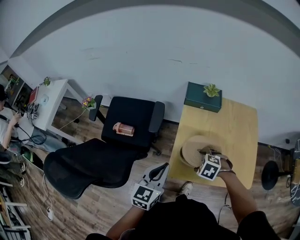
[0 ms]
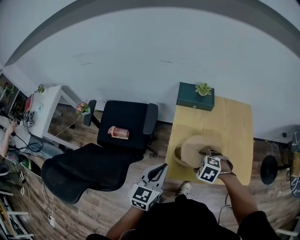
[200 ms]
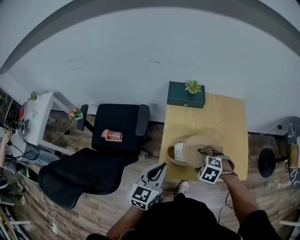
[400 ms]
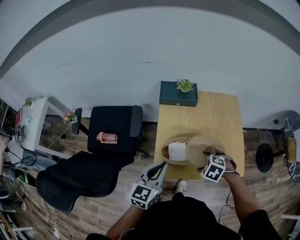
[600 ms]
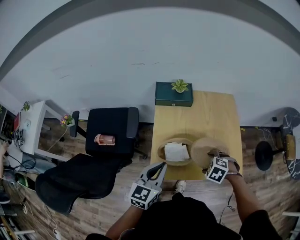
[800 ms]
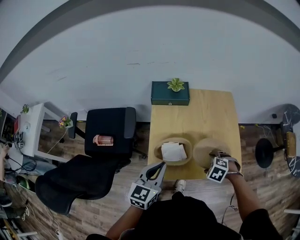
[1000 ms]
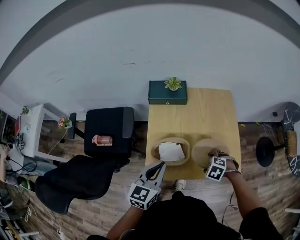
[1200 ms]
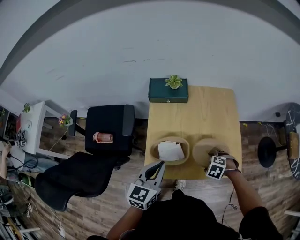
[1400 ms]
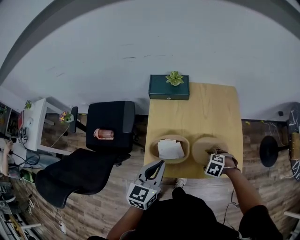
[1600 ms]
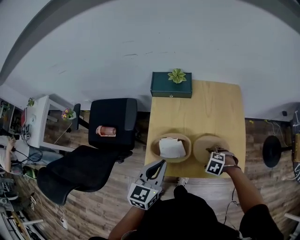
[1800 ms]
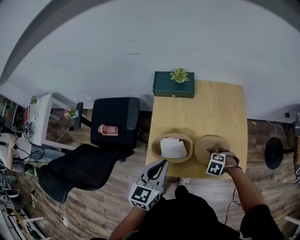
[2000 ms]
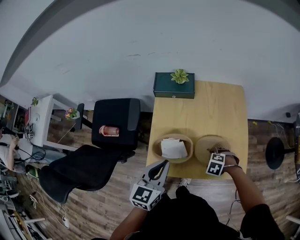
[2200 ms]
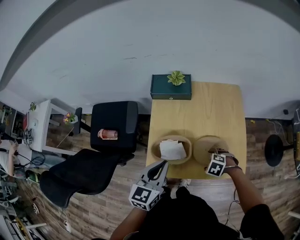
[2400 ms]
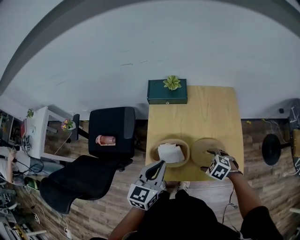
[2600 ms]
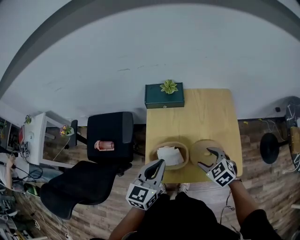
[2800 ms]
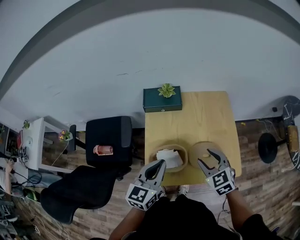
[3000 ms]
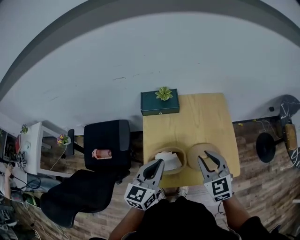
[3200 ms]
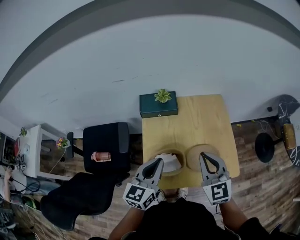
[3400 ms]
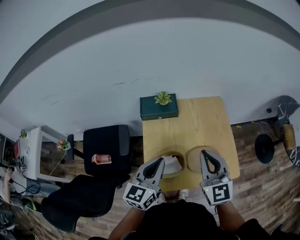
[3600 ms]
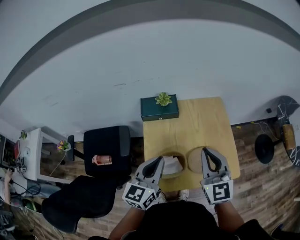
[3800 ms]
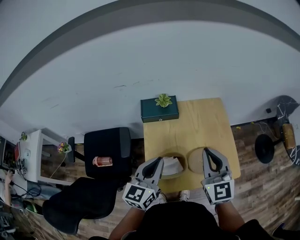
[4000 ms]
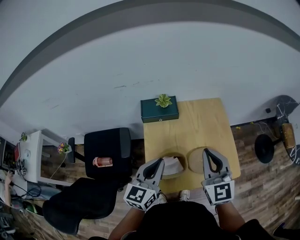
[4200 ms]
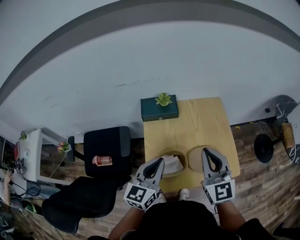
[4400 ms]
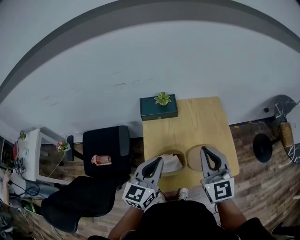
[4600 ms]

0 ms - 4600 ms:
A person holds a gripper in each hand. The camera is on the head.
0 ms - 1600 ms: The right gripper shifts by roughly 25 cm, while the left gripper shifts by approximately 15 cm.
1600 ms - 3000 ms: The left gripper moves some 5 cm, while the right gripper heads upward, covering approximately 20 cm, and tilts its fingers roughly 50 degrees upward.
3000 ms - 4600 ms: The left gripper ends up about 5 cm from where it was; the right gripper travels upward by approximately 15 cm, angles its fingers upward, by some 40 degrees, and closes up.

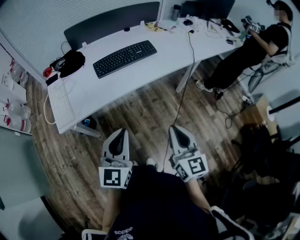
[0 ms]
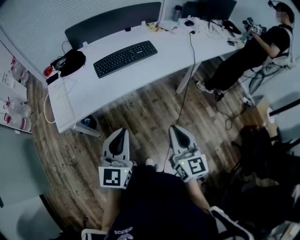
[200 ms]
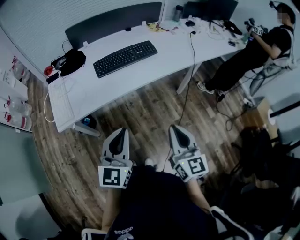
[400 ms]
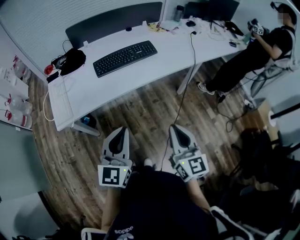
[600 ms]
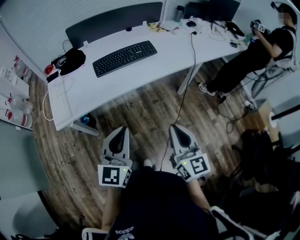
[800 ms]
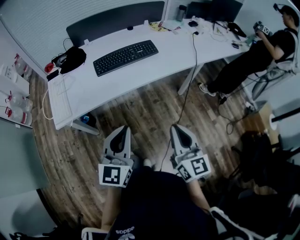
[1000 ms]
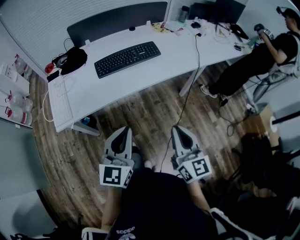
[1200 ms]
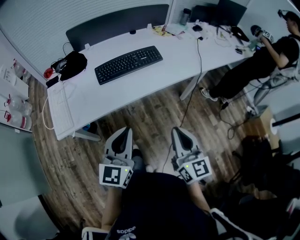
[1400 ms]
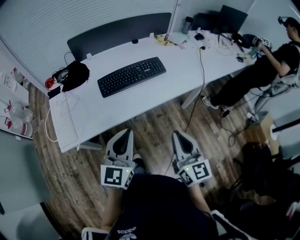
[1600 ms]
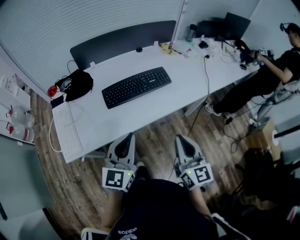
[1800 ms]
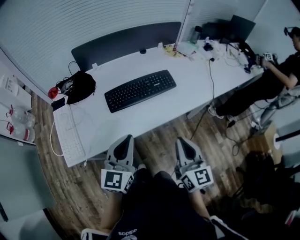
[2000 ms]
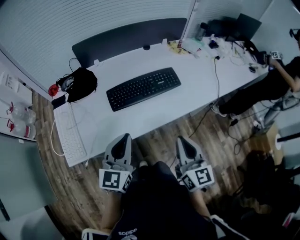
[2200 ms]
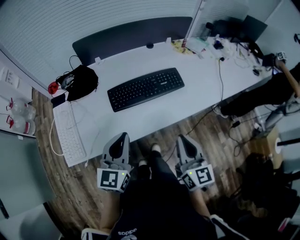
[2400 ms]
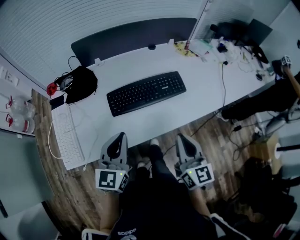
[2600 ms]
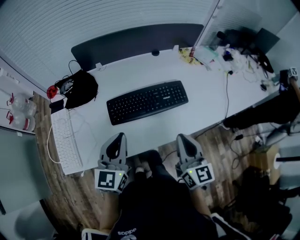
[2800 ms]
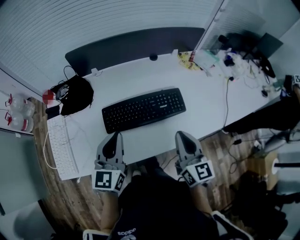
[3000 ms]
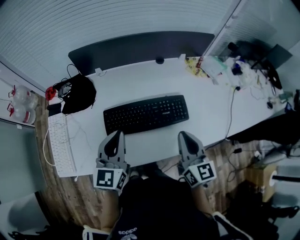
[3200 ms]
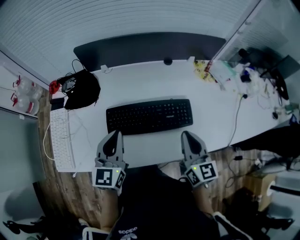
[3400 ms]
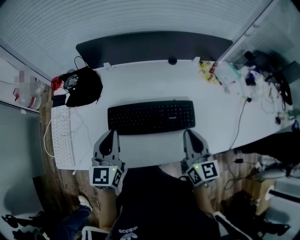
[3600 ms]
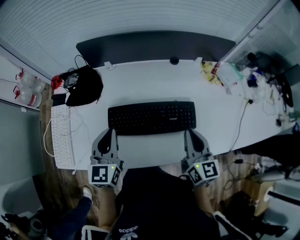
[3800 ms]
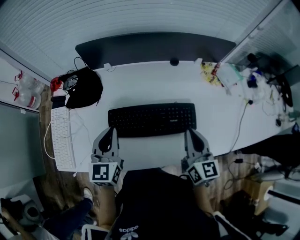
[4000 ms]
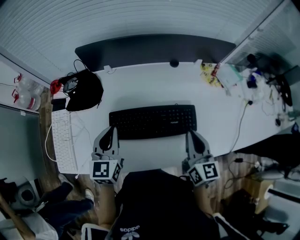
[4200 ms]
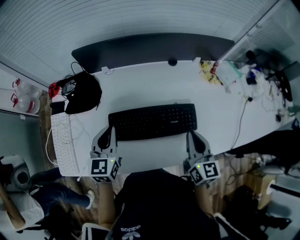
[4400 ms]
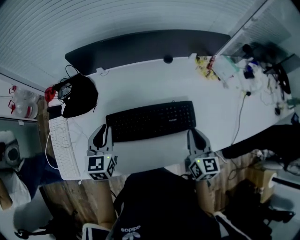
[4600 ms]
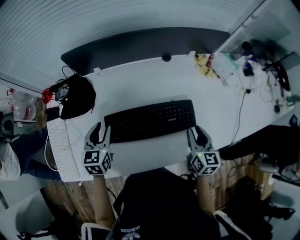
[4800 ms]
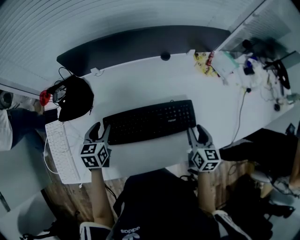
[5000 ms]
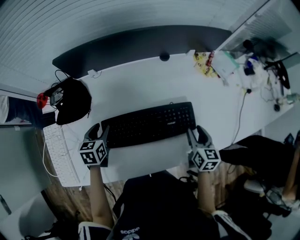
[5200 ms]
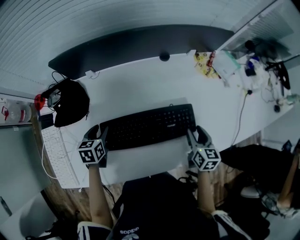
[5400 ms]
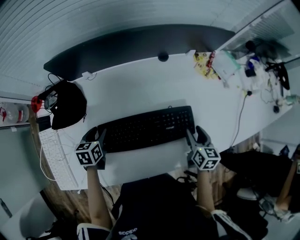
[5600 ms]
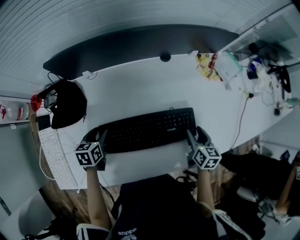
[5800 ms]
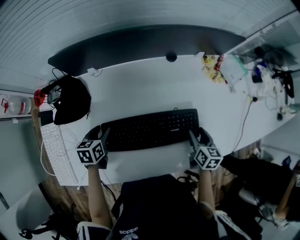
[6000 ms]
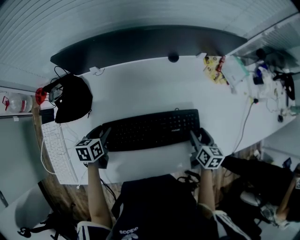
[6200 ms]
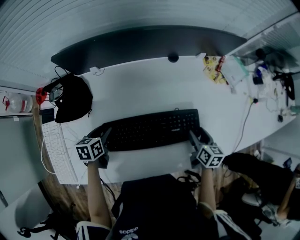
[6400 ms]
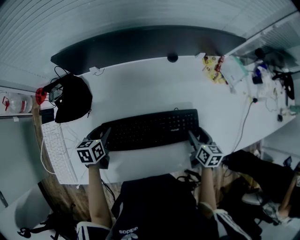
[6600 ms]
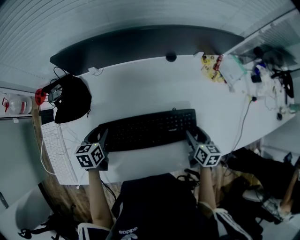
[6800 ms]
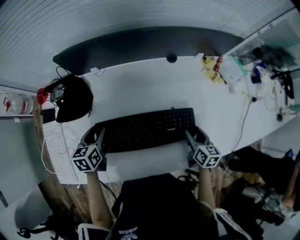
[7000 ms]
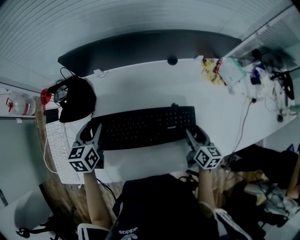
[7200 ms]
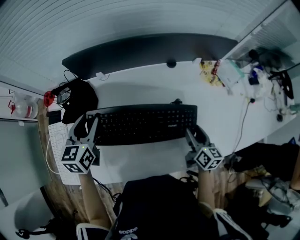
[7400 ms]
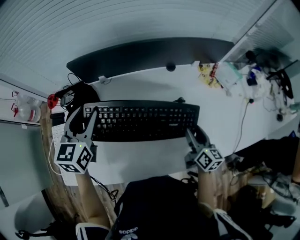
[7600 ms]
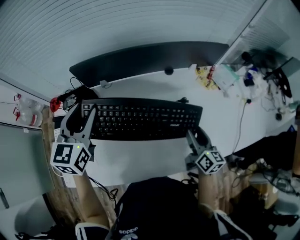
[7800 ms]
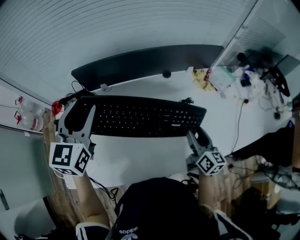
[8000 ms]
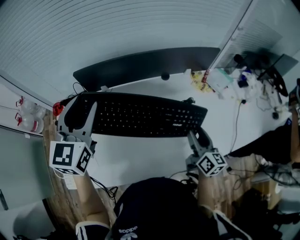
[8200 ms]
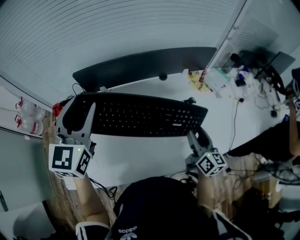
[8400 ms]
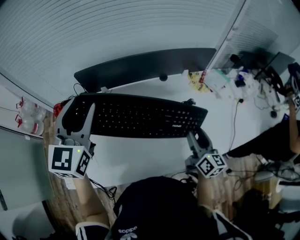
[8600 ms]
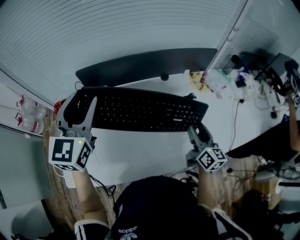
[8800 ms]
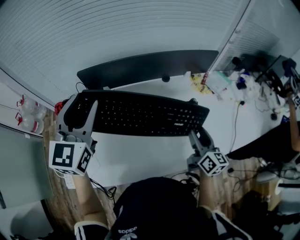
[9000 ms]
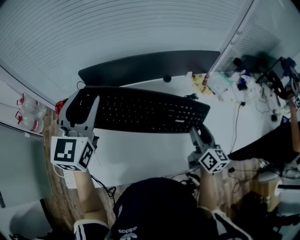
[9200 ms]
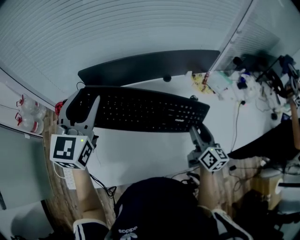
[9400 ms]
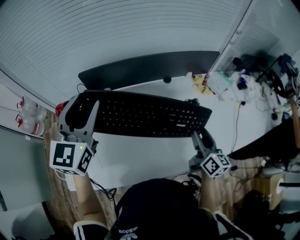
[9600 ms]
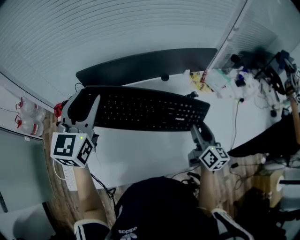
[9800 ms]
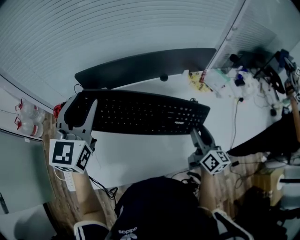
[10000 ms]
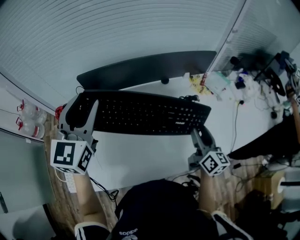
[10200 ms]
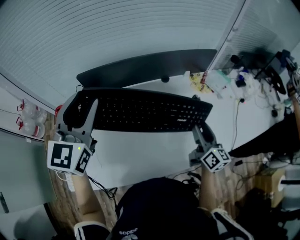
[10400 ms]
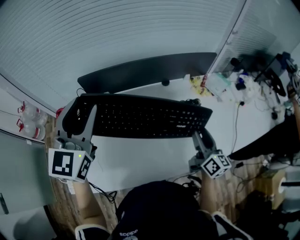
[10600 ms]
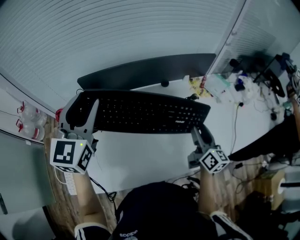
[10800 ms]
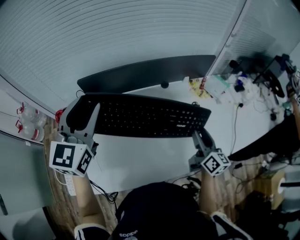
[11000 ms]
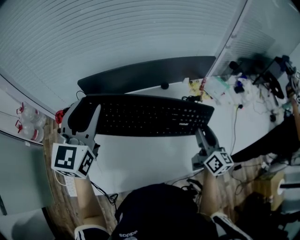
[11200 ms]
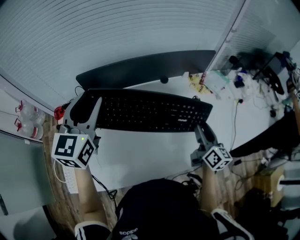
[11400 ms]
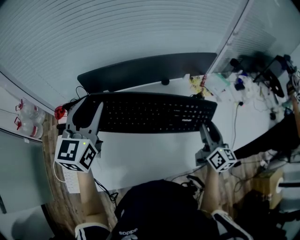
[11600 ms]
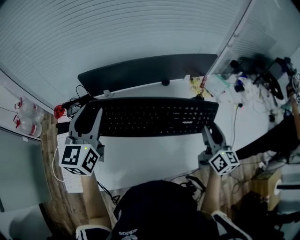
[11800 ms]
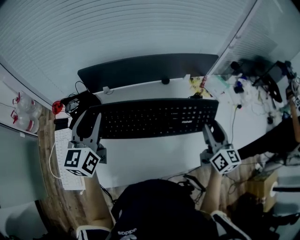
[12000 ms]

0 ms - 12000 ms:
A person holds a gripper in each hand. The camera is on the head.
0 ms - 1600 ms: Both grippers move forward, approximately 15 cm.
1600 ms - 3000 ms: Both grippers travel together forward, approximately 30 cm.
3000 ms - 4400 ms: The right gripper moves forward, roughly 10 cm; the left gripper goes some 10 cm forward and downward.
4400 ms - 6000 ms: The right gripper shifts about 20 cm downward and to the right, turns by roughly 30 degrees, and opens its fingers. Meanwhile the left gripper goes about 15 cm downward, swivels roughly 40 degrees, and opens up.
6000 ms - 7600 ms: The right gripper goes roughly 10 cm upward, and swivels roughly 20 degrees. Meanwhile the left gripper goes roughly 25 cm upward, and turns by roughly 40 degrees.
7600 ms - 9000 ms: The left gripper goes approximately 15 cm upward, and swivels about 20 degrees. The right gripper is displaced upward by about 10 cm.
9000 ms - 10400 ms: There are only small adjustments of the grippers.
10400 ms - 12000 ms: The left gripper moves downward, about 10 cm, and rotates roughly 20 degrees. The right gripper changes place by roughly 5 cm.

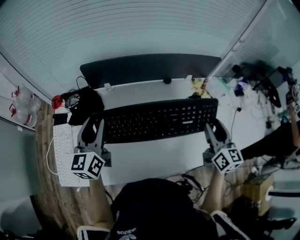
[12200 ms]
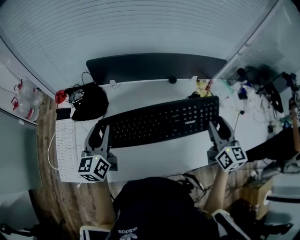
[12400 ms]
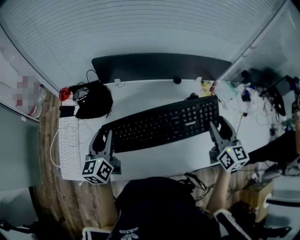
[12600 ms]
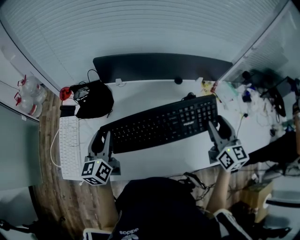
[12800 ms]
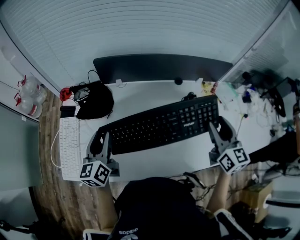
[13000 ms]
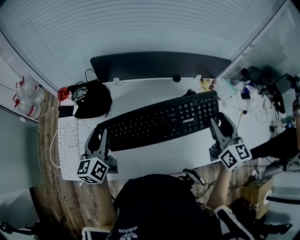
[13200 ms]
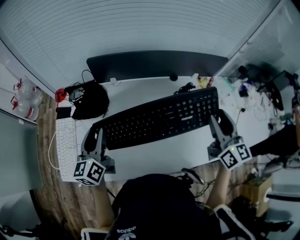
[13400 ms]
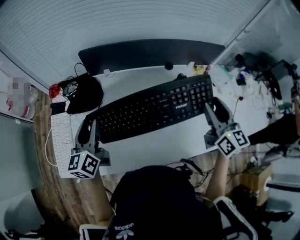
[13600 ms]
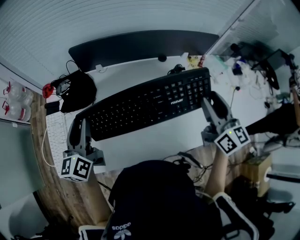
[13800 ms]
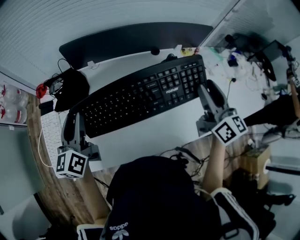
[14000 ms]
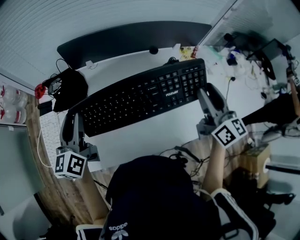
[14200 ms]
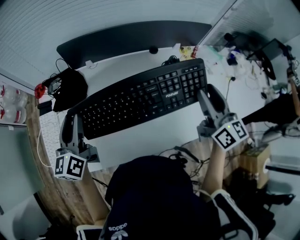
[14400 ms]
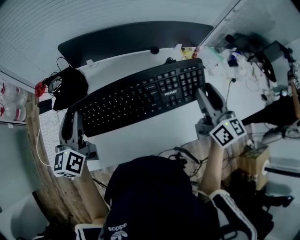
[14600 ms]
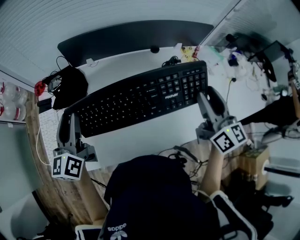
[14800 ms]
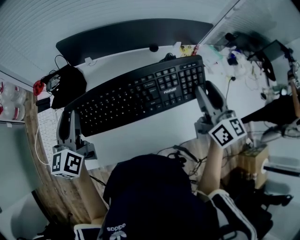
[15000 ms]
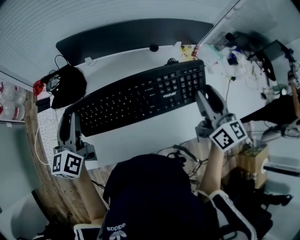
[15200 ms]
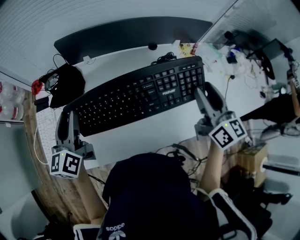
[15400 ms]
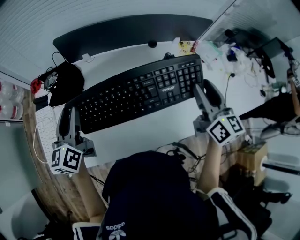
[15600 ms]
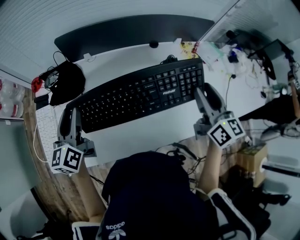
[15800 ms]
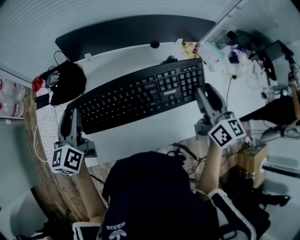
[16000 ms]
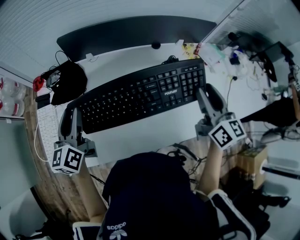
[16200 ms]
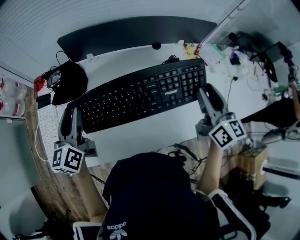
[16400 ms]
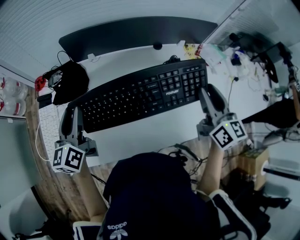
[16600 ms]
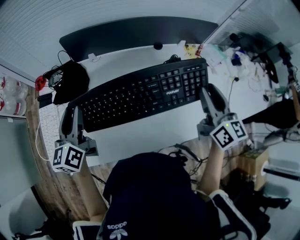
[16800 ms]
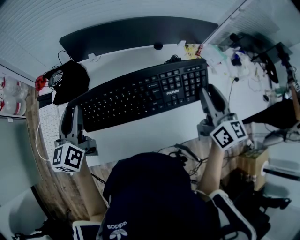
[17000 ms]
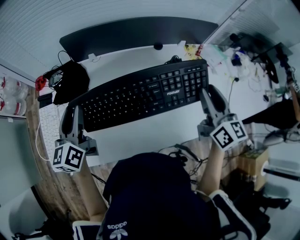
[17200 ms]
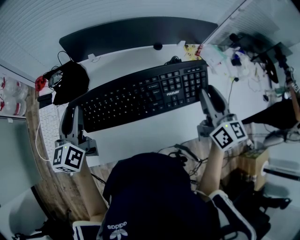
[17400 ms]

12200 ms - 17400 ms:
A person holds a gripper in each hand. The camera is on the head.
12200 ms - 14000 ms: The right gripper travels upward by about 5 cm.
14000 ms - 15600 ms: The grippers make only small movements.
15600 ms - 17400 ms: Neither gripper changes place.

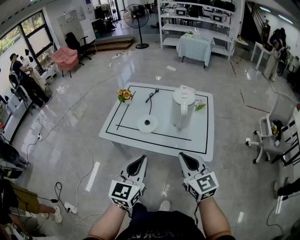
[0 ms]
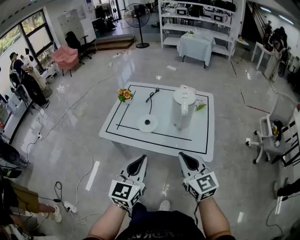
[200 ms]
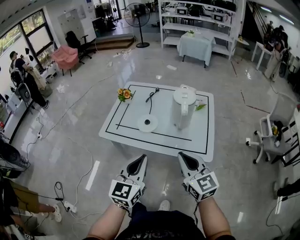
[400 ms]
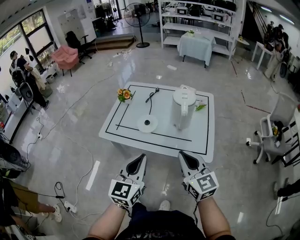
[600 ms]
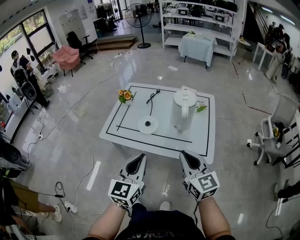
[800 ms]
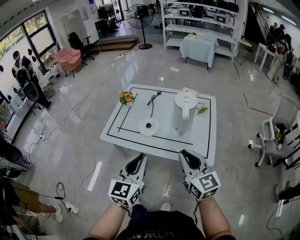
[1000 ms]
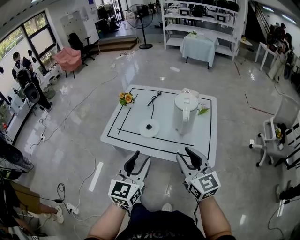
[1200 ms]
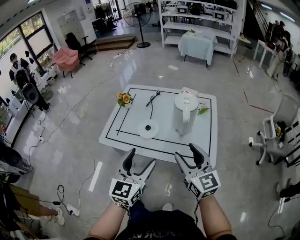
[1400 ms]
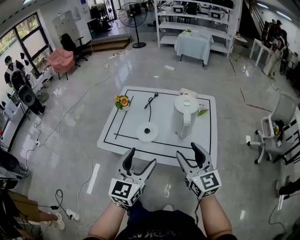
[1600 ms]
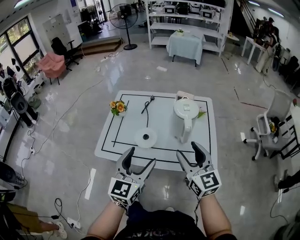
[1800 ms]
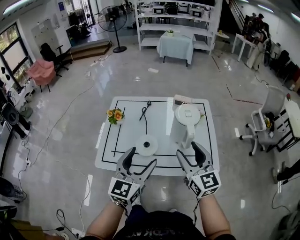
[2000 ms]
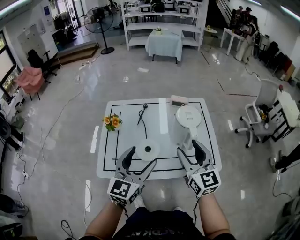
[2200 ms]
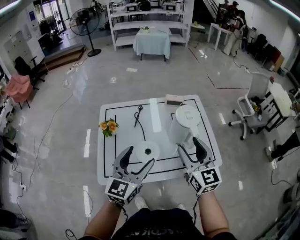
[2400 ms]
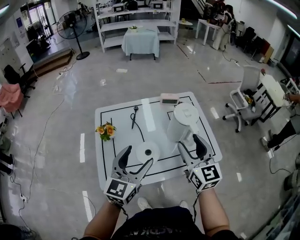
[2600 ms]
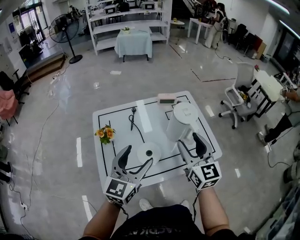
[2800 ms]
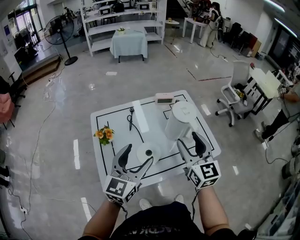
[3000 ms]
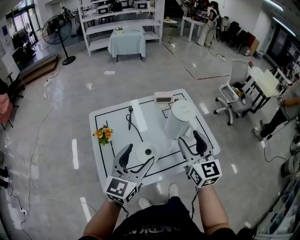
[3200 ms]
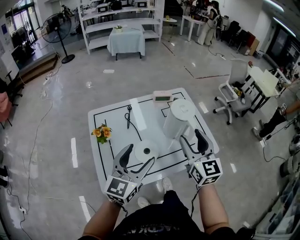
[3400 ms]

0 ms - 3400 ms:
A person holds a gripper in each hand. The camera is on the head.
0 ms - 1600 ms: The grippers both shift forward by about 10 cm. The left gripper opens its fingers. The right gripper opens up.
1600 ms - 3400 ms: The left gripper changes place by roughly 20 cm, and rotates roughly 40 degrees; the right gripper changes place by some 15 cm, and rotates some 40 degrees.
